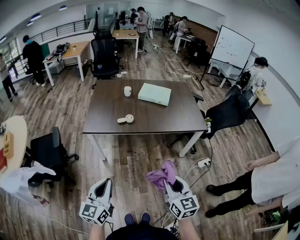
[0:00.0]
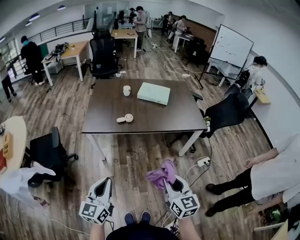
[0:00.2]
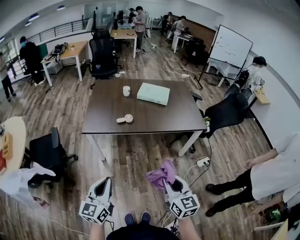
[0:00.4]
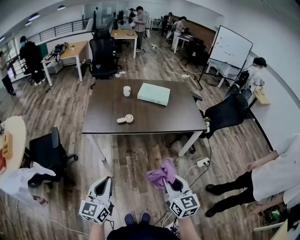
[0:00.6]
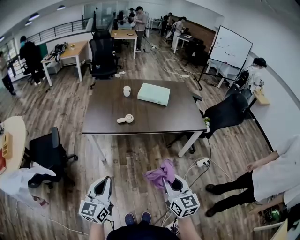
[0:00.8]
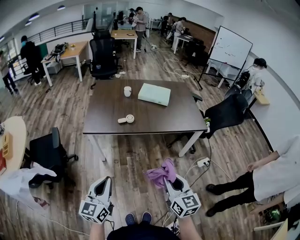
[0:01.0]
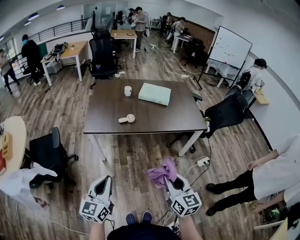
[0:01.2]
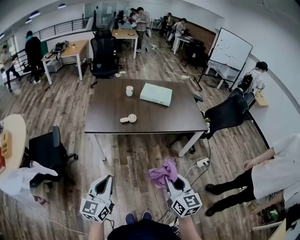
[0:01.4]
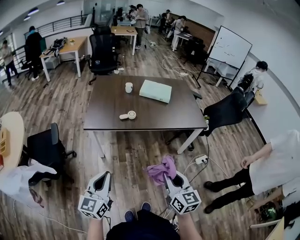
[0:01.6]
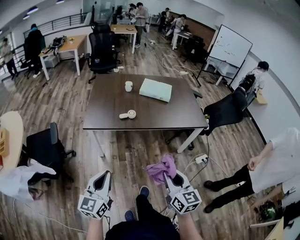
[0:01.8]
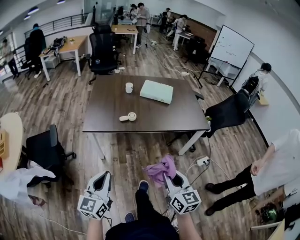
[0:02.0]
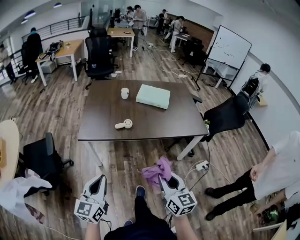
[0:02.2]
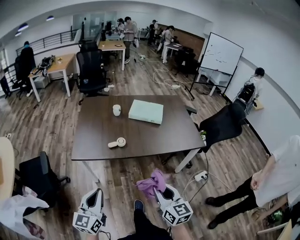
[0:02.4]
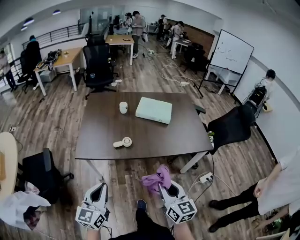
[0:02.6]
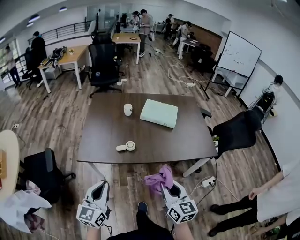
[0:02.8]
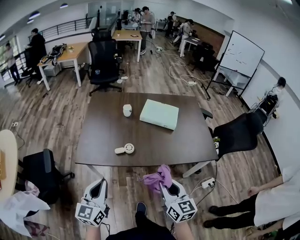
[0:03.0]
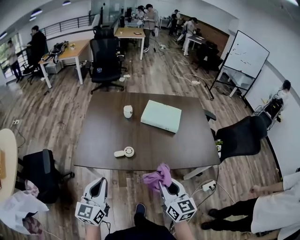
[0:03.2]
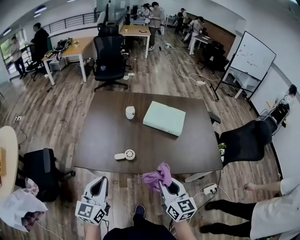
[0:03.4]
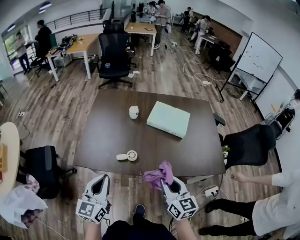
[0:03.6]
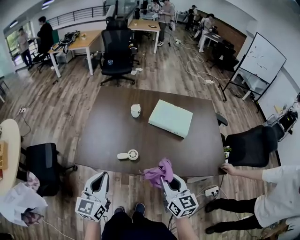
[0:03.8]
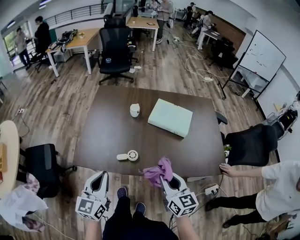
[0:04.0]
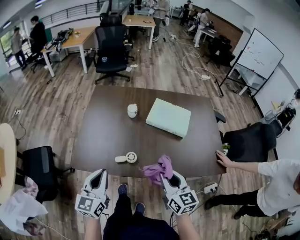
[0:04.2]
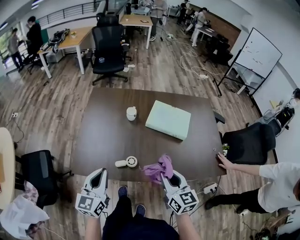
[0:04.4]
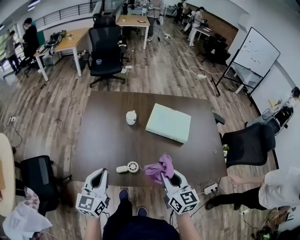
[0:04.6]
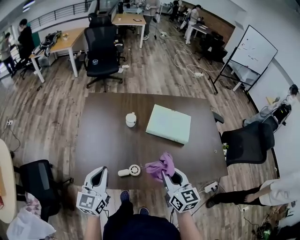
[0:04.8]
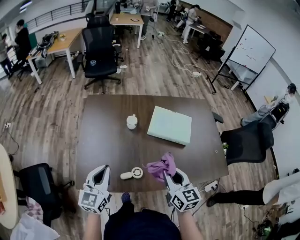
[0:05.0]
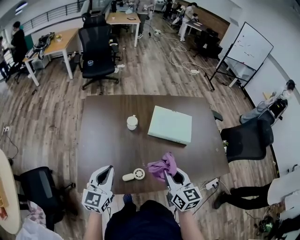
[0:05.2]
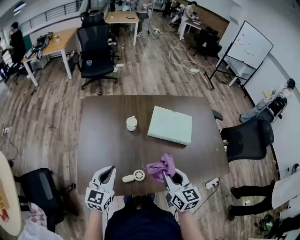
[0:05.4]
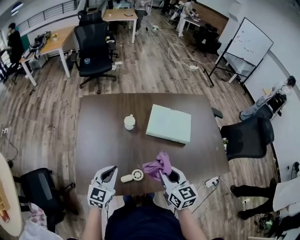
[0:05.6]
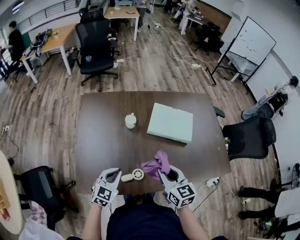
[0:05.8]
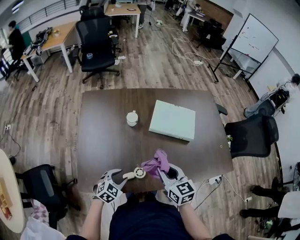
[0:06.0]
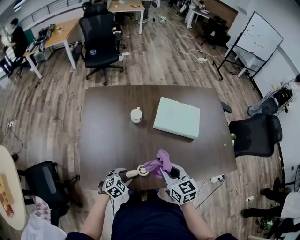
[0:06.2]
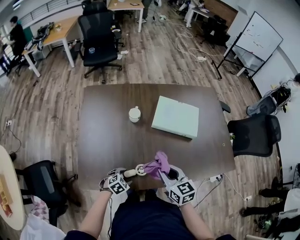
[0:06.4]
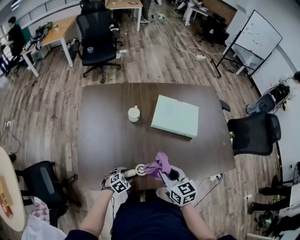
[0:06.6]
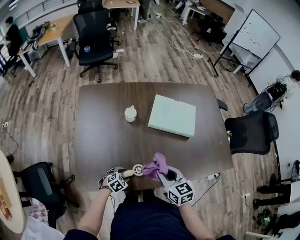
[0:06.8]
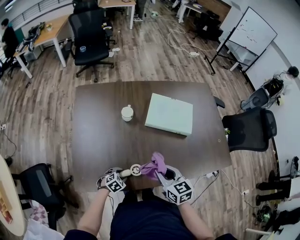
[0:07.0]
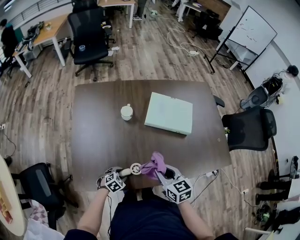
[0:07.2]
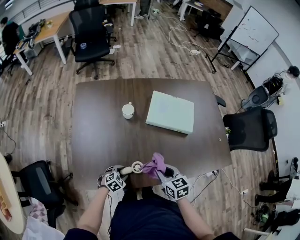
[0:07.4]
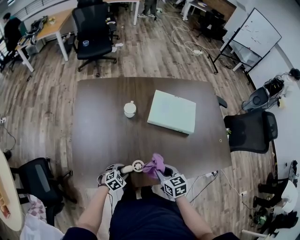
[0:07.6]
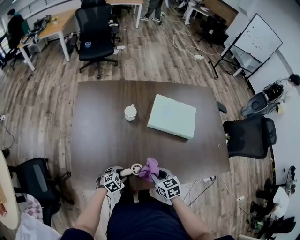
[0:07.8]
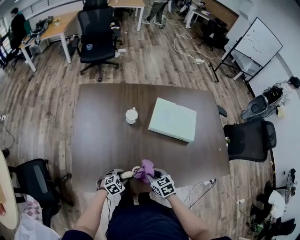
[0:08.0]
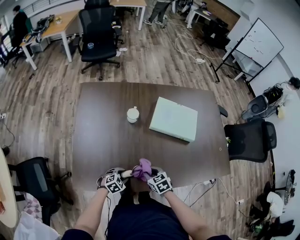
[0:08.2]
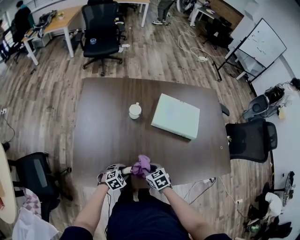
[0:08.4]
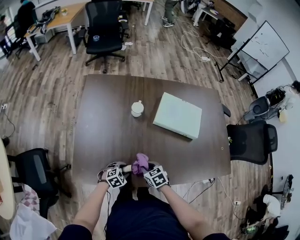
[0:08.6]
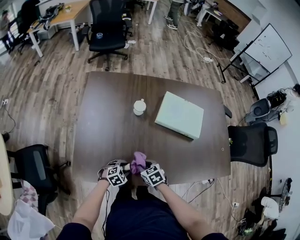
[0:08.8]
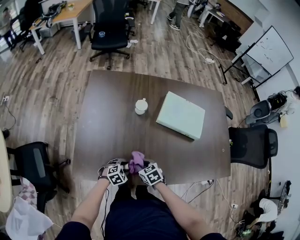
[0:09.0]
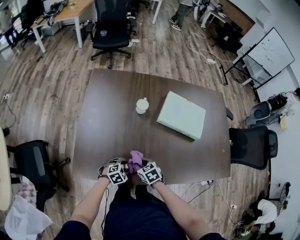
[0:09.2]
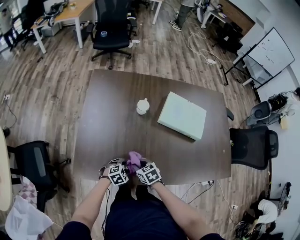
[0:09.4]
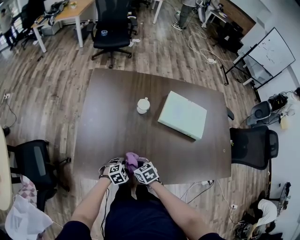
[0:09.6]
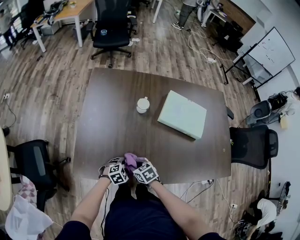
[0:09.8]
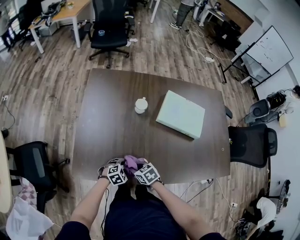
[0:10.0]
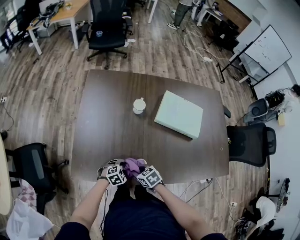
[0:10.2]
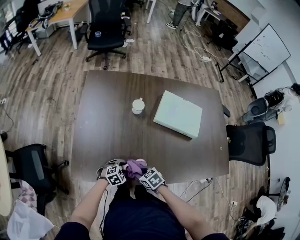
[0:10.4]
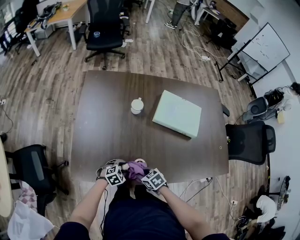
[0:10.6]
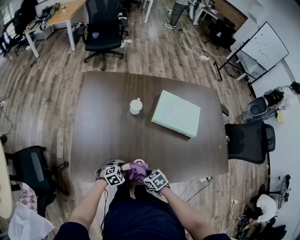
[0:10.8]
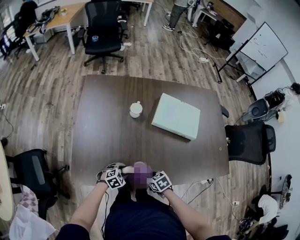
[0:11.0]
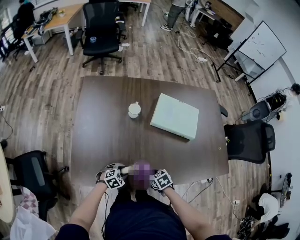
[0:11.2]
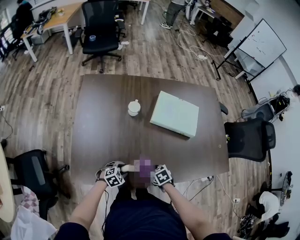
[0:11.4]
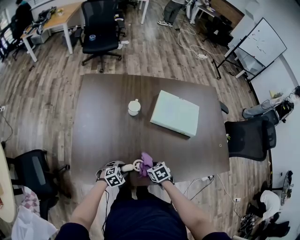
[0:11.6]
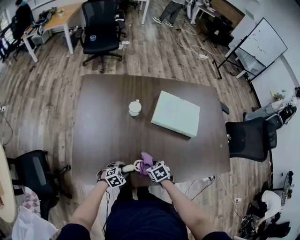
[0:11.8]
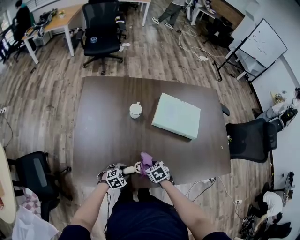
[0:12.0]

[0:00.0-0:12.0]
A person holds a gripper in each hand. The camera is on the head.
0:00.0 to 0:01.6: Both grippers move to the left, roughly 5 cm.
0:01.6 to 0:03.0: The grippers both shift forward by approximately 30 cm.
0:03.0 to 0:04.4: The two grippers go some 20 cm forward.
0:04.4 to 0:06.0: The right gripper travels forward, to the left and downward by some 15 cm; the left gripper shifts some 25 cm downward and forward, points its fingers approximately 40 degrees further downward, and opens.
0:06.0 to 0:07.6: Both grippers travel together downward, about 15 cm.
0:07.6 to 0:09.0: The right gripper is displaced to the left and downward by approximately 15 cm, and changes its angle by some 20 degrees.
0:09.0 to 0:10.4: The right gripper moves approximately 5 cm.
0:10.4 to 0:12.0: The right gripper ends up roughly 10 cm from where it was.

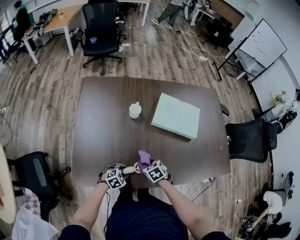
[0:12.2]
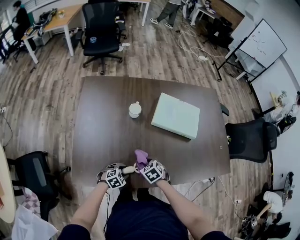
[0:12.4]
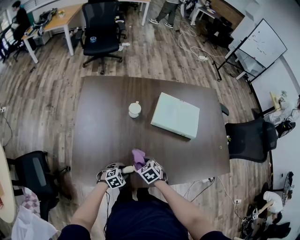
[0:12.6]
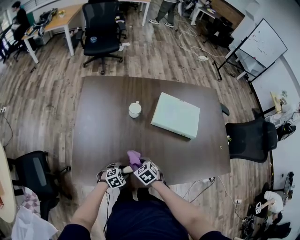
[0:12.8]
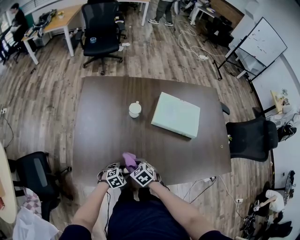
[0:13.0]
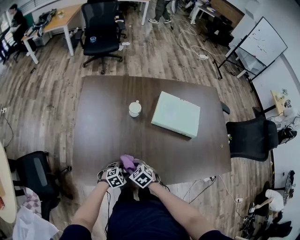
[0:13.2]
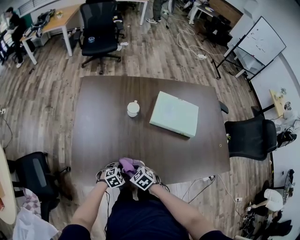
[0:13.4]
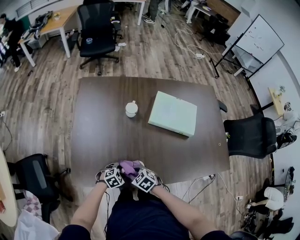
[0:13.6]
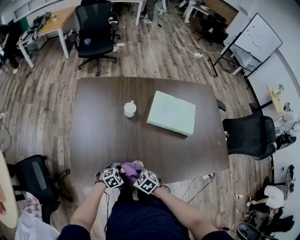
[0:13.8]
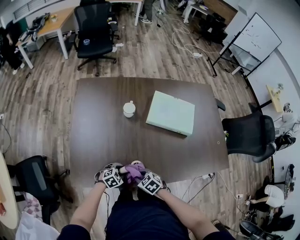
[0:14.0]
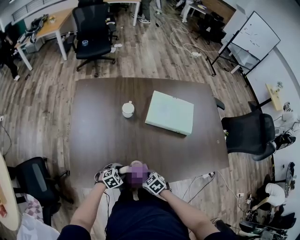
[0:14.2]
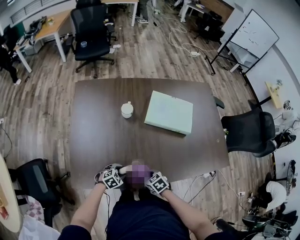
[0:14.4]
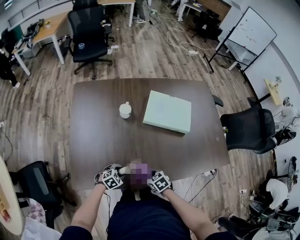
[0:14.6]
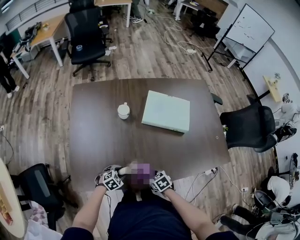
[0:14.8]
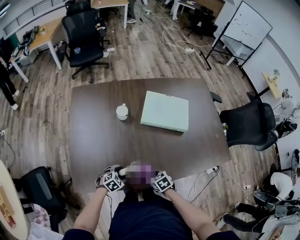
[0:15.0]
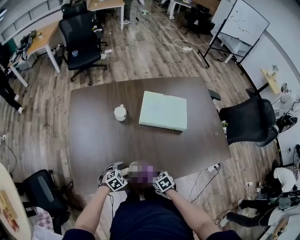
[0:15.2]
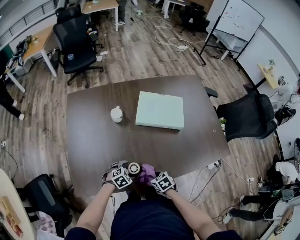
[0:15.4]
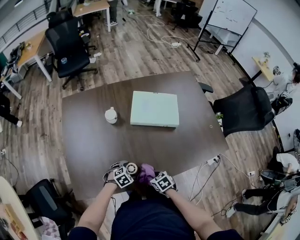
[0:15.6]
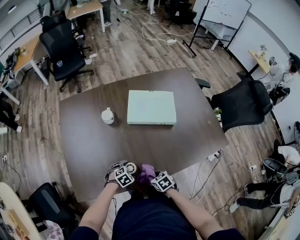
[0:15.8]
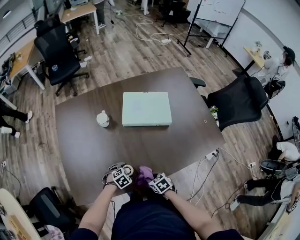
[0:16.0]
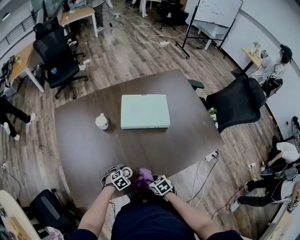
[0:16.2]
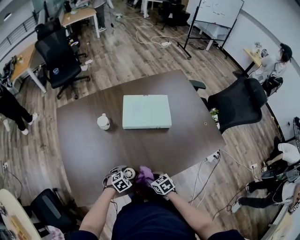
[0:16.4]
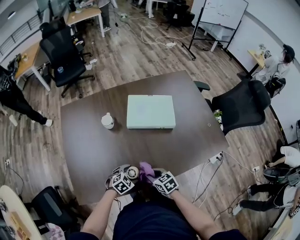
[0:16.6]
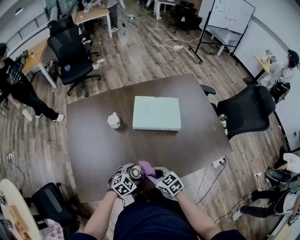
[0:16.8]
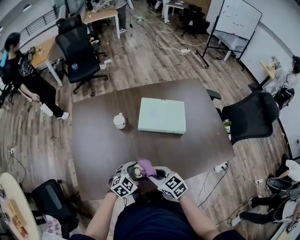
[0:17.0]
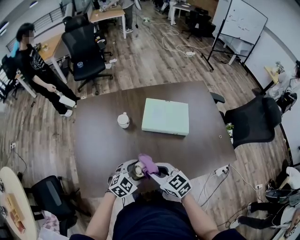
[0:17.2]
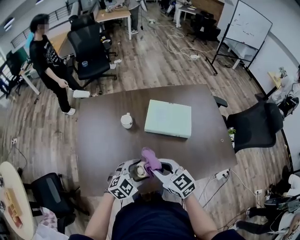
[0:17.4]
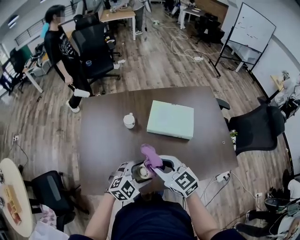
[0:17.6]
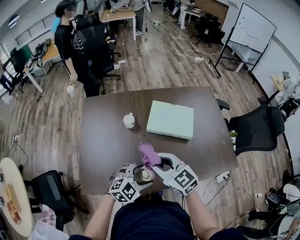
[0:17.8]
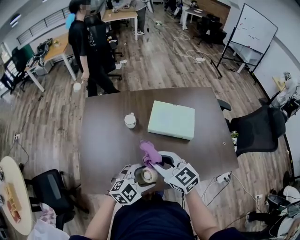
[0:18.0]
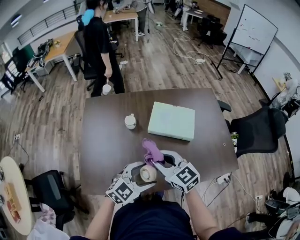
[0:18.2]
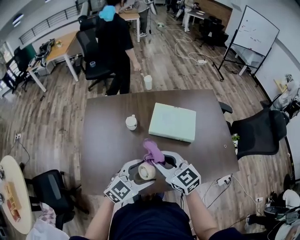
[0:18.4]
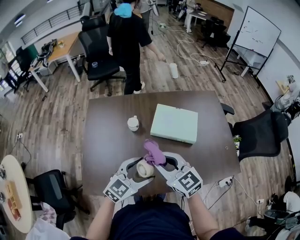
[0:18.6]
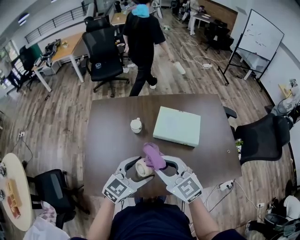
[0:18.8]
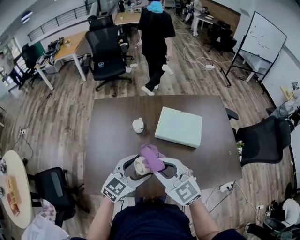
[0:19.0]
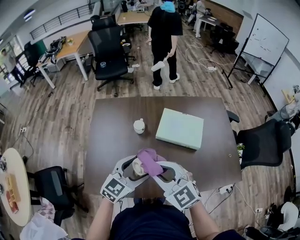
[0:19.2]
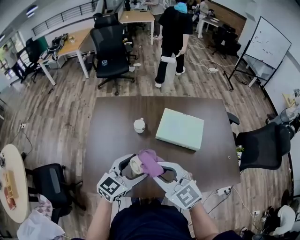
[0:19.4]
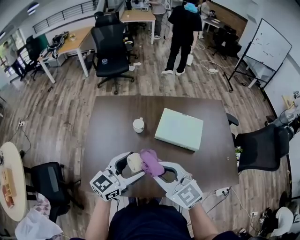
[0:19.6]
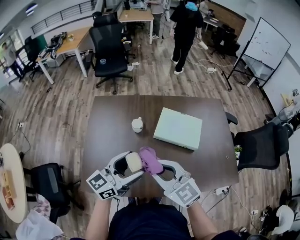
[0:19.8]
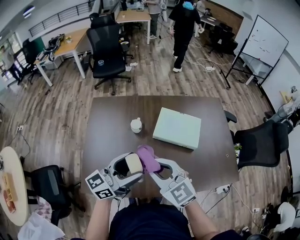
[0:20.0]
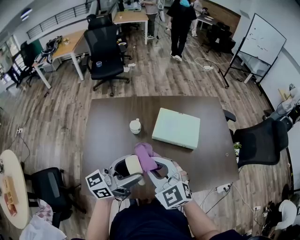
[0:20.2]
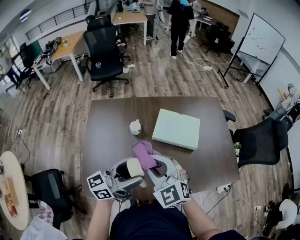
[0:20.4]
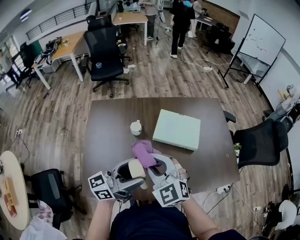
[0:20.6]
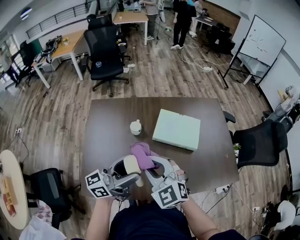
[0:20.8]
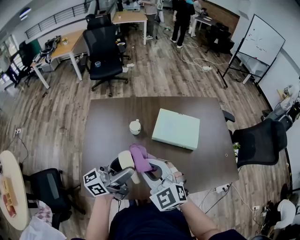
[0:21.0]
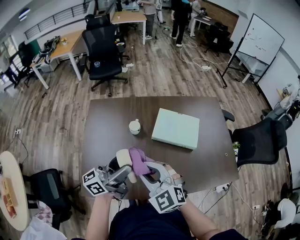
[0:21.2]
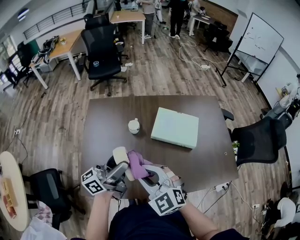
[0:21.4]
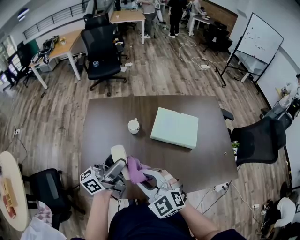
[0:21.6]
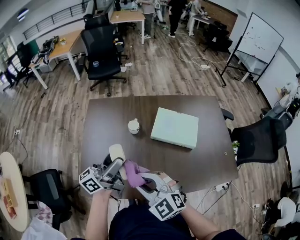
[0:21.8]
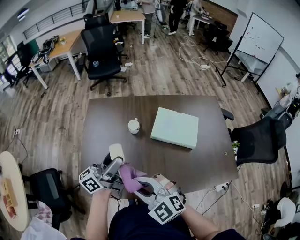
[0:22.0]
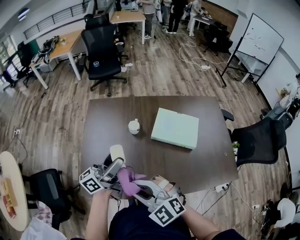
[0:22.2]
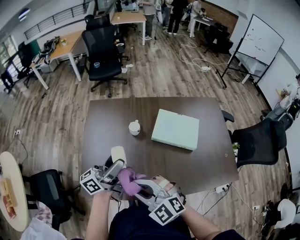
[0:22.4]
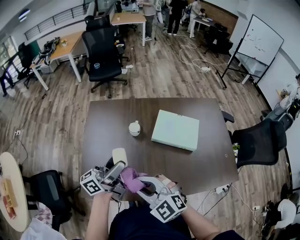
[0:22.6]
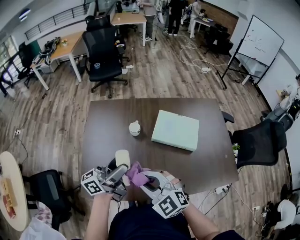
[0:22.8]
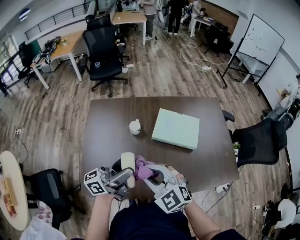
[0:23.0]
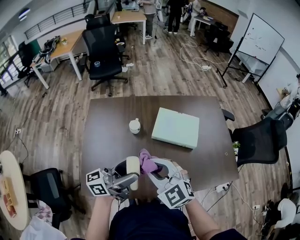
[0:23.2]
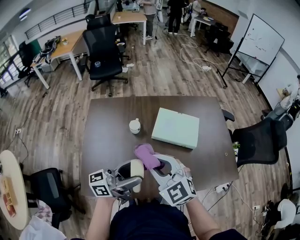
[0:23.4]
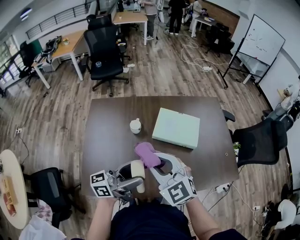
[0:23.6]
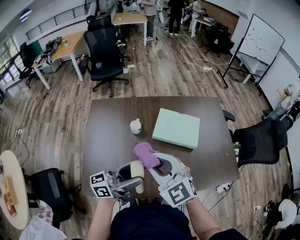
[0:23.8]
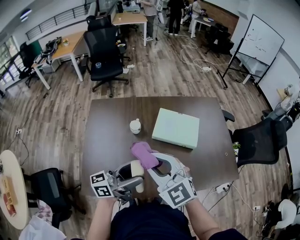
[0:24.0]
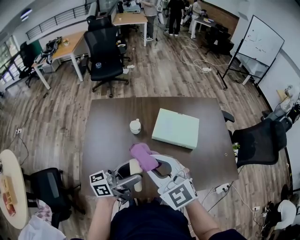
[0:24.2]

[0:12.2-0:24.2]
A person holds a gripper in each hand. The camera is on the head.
0:12.2 to 0:13.8: The right gripper ends up some 10 cm from where it was.
0:13.8 to 0:15.2: The left gripper opens. Meanwhile the right gripper ends up roughly 15 cm from where it was, and swivels some 30 degrees.
0:15.2 to 0:16.6: The right gripper heads upward, covering about 5 cm; the left gripper shifts by some 10 cm.
0:16.6 to 0:18.2: The grippers both shift upward by roughly 25 cm. The left gripper tips its fingers upward by roughly 30 degrees. The right gripper turns by some 40 degrees.
0:18.2 to 0:19.8: The right gripper heads upward, covering some 5 cm, while the left gripper travels upward, to the left and forward by about 15 cm, and rotates some 40 degrees.
0:19.8 to 0:21.2: The left gripper changes its angle by some 30 degrees.
0:21.2 to 0:22.6: The right gripper shifts about 5 cm backward.
0:22.6 to 0:24.2: The left gripper heads to the right and backward, covering approximately 10 cm, while the right gripper shifts roughly 10 cm upward and forward.
